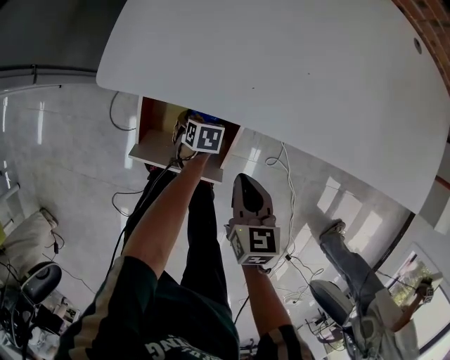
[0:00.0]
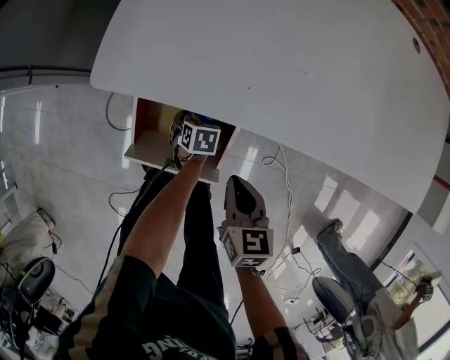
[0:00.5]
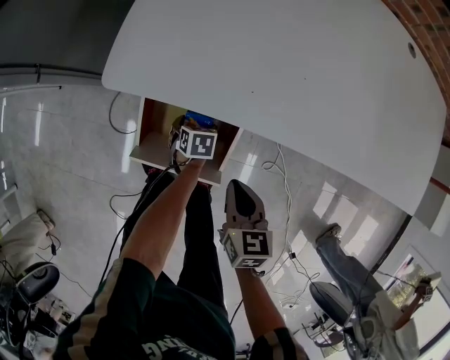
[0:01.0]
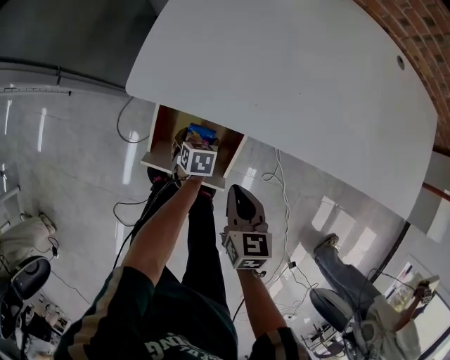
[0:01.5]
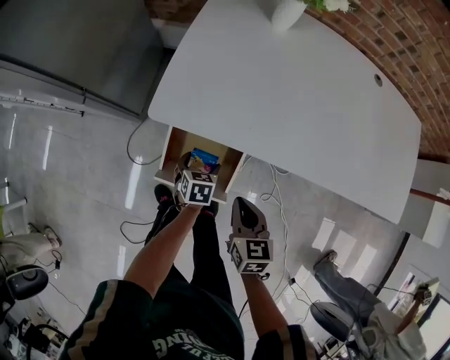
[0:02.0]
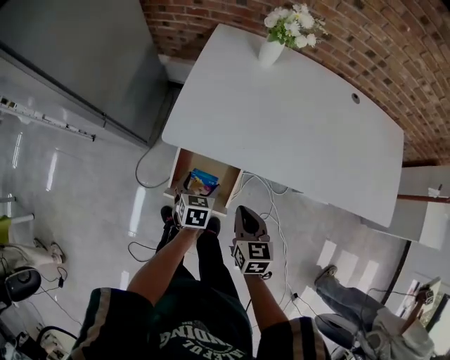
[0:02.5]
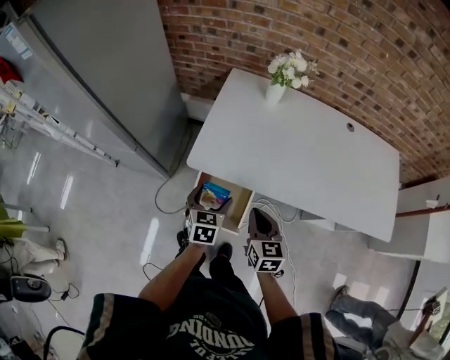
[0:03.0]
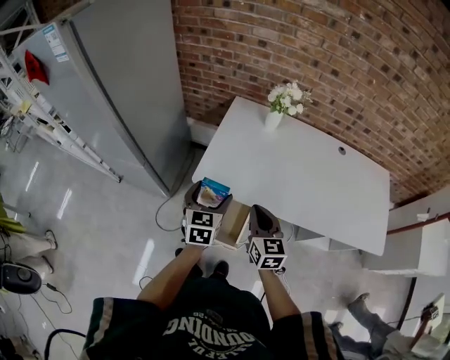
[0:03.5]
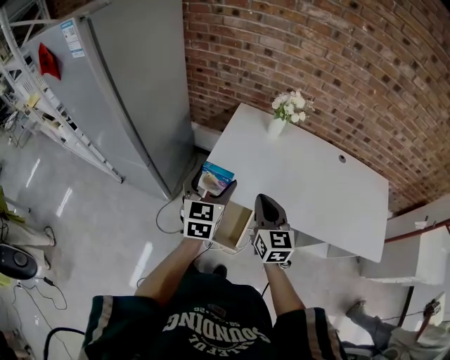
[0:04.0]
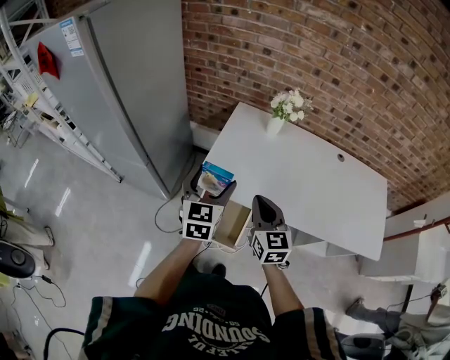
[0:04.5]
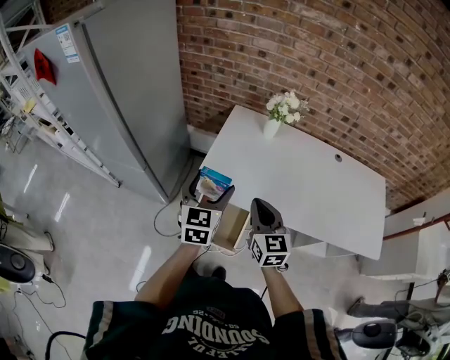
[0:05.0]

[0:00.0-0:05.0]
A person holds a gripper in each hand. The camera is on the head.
0:00.0 to 0:02.5: The right gripper heads upward, covering roughly 15 cm. Meanwhile the left gripper goes some 25 cm upward, and changes its angle by about 20 degrees.
0:02.5 to 0:05.0: The left gripper goes approximately 35 cm upward, and tilts its fingers approximately 40 degrees upward, while the right gripper heads upward, covering roughly 20 cm, and changes its angle by about 30 degrees.

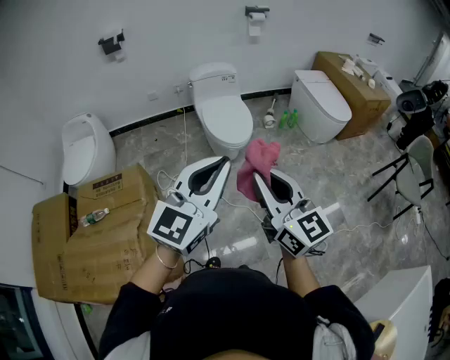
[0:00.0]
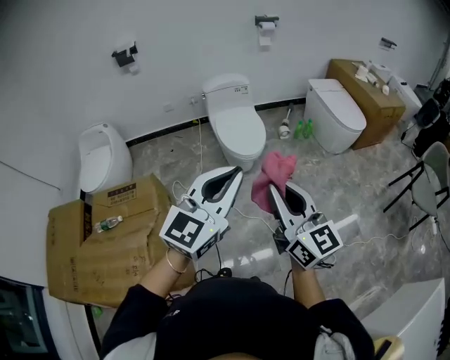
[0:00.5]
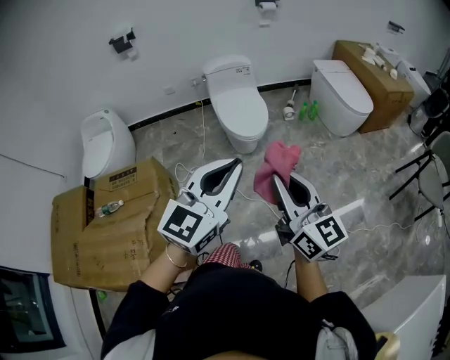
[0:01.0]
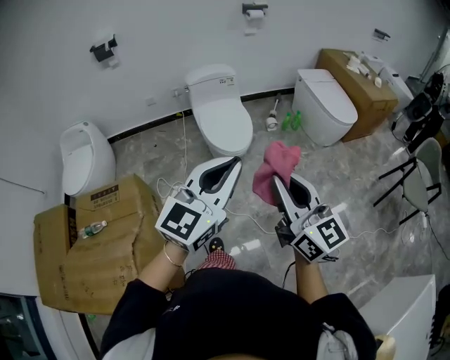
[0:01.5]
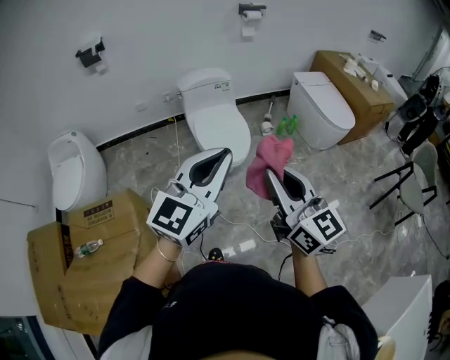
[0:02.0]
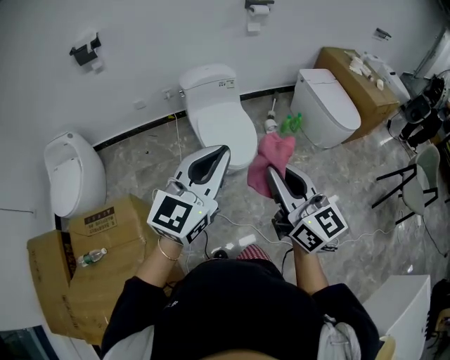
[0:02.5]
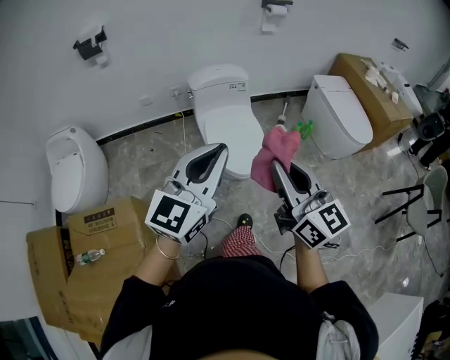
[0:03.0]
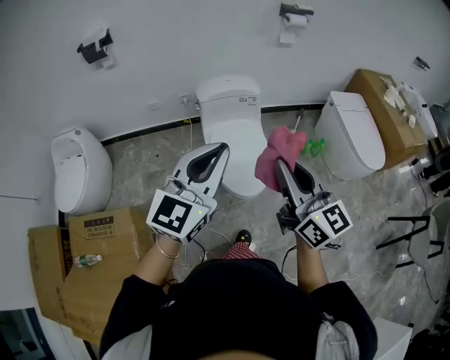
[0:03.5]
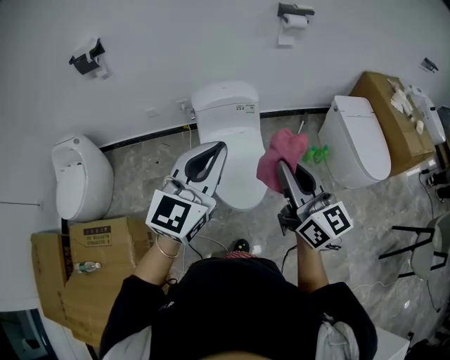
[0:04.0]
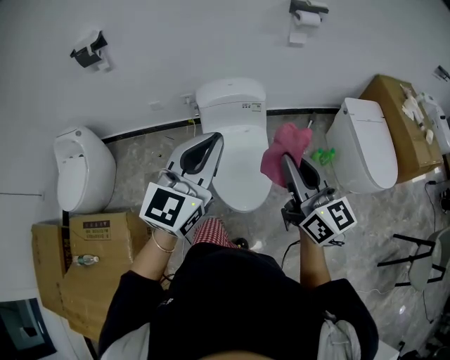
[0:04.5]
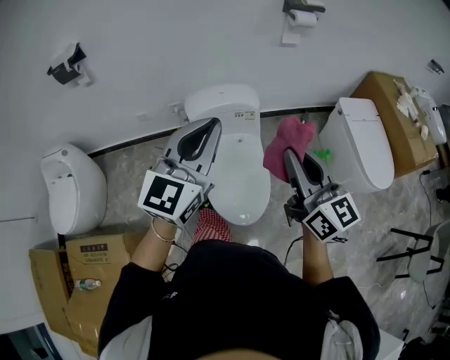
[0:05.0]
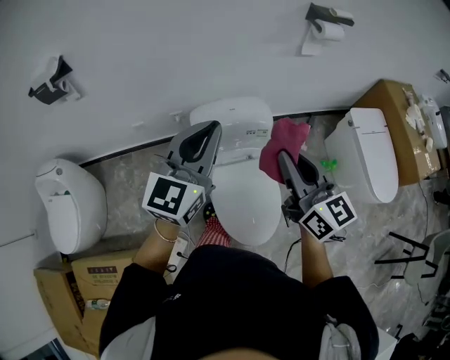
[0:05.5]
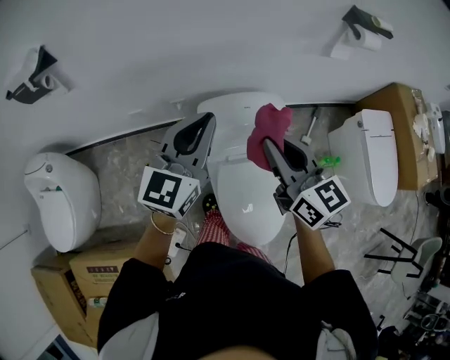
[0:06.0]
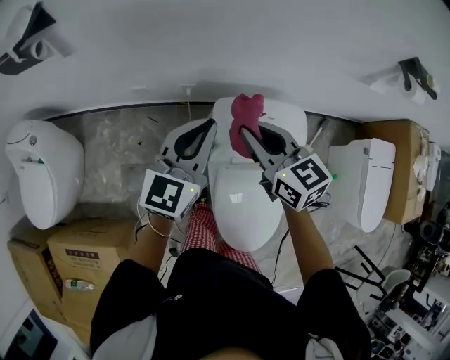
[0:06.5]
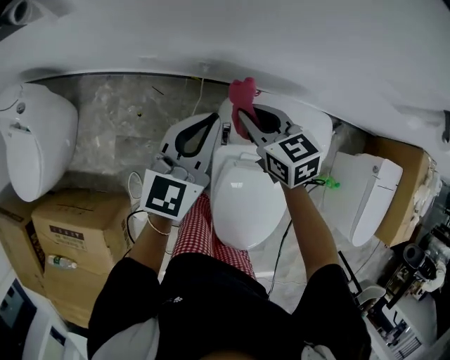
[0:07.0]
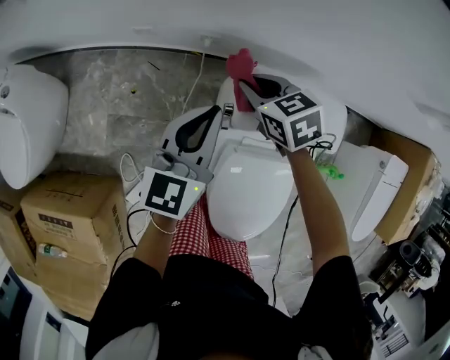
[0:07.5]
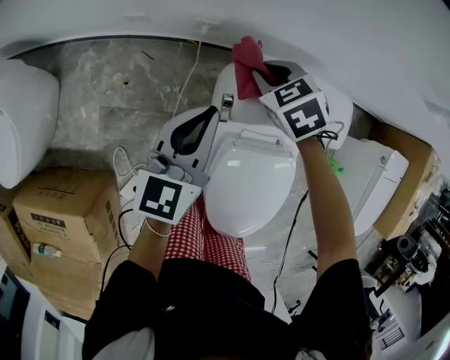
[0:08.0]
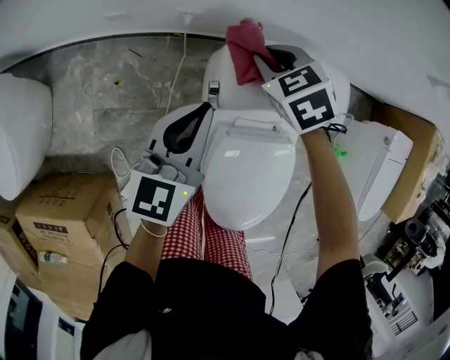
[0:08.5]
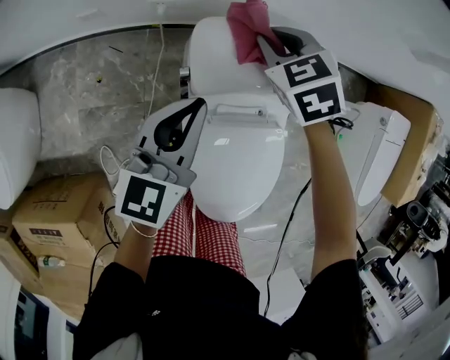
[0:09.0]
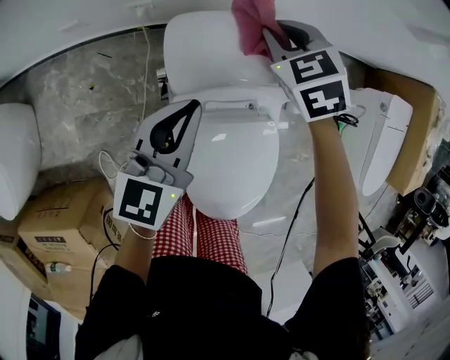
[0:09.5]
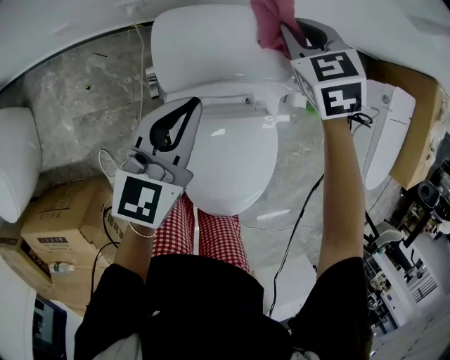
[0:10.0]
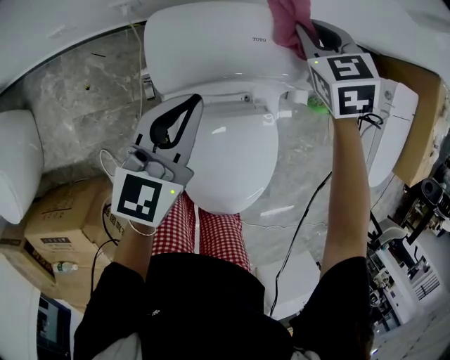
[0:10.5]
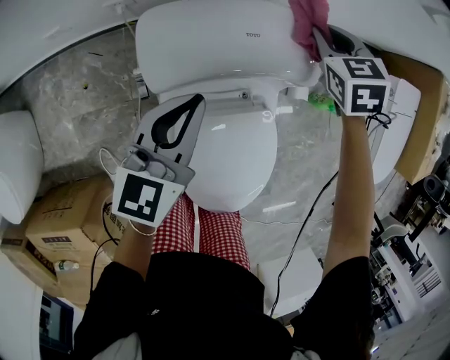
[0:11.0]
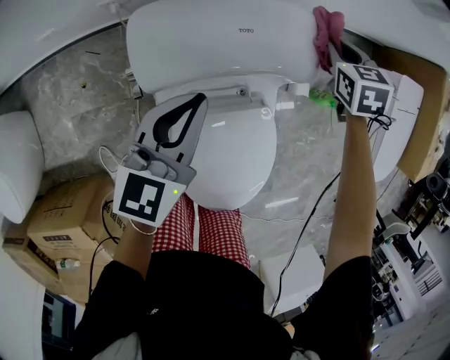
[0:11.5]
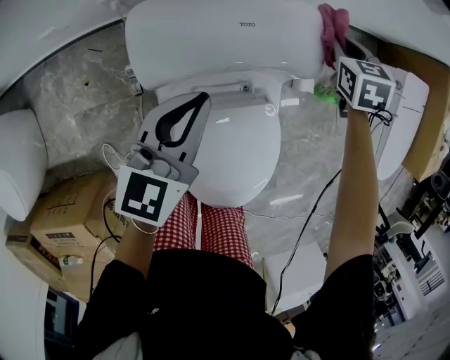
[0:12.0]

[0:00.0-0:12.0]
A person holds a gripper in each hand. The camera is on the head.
0:00.0 to 0:02.0: The grippers both shift forward by approximately 20 cm.
0:02.0 to 0:04.0: The grippers both shift forward by approximately 35 cm.
0:04.0 to 0:06.0: The two grippers travel together, forward and to the left, about 50 cm.
0:06.0 to 0:08.0: The right gripper shifts about 40 cm downward and forward, and tilts its fingers approximately 50 degrees downward. Meanwhile the left gripper shifts roughly 30 cm downward, and rotates approximately 30 degrees.
0:08.0 to 0:10.0: The right gripper heads to the right, covering some 20 cm, and swivels roughly 20 degrees. Meanwhile the left gripper heads to the right, covering some 15 cm.
0:10.0 to 0:12.0: The left gripper moves some 5 cm, while the right gripper is displaced to the right by roughly 20 cm, and turns by about 30 degrees.

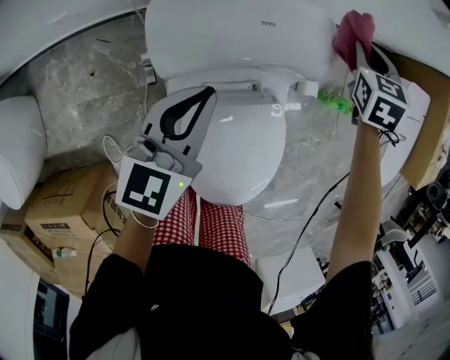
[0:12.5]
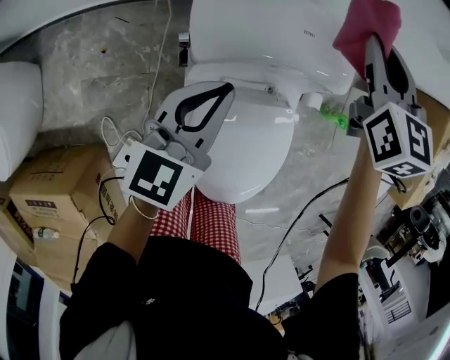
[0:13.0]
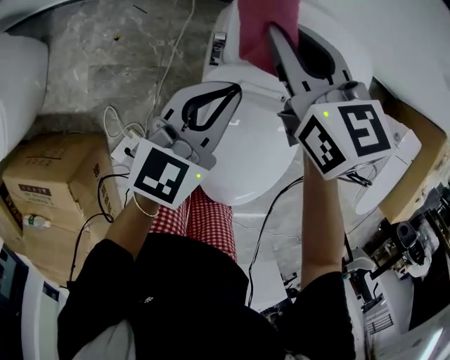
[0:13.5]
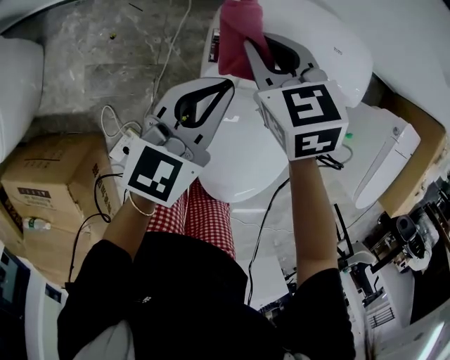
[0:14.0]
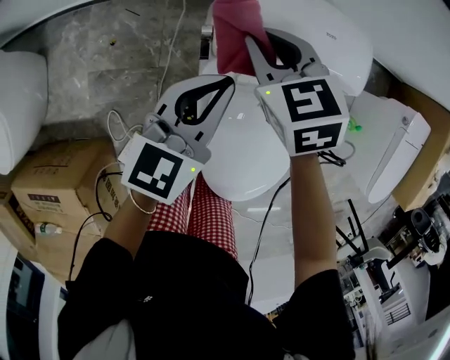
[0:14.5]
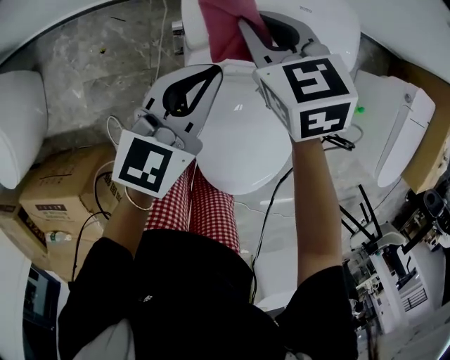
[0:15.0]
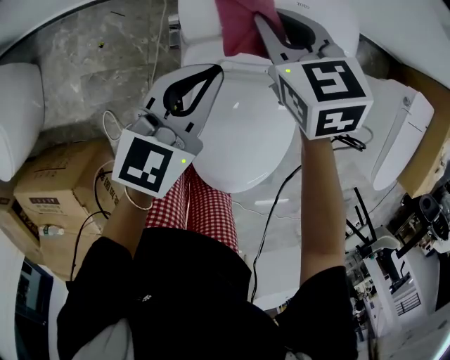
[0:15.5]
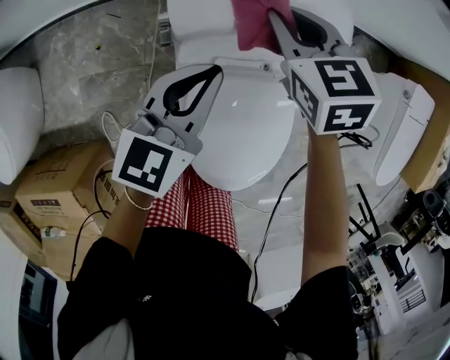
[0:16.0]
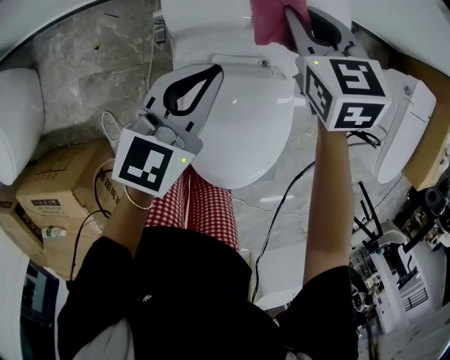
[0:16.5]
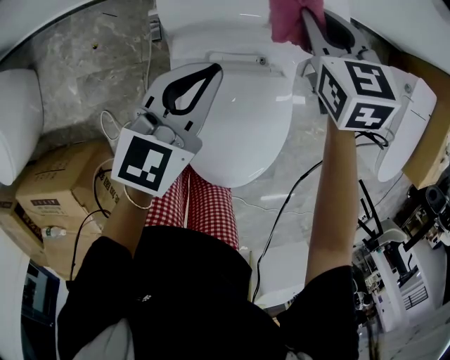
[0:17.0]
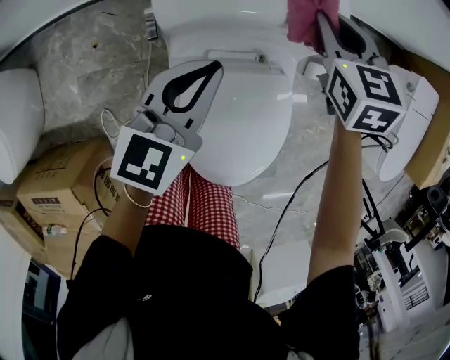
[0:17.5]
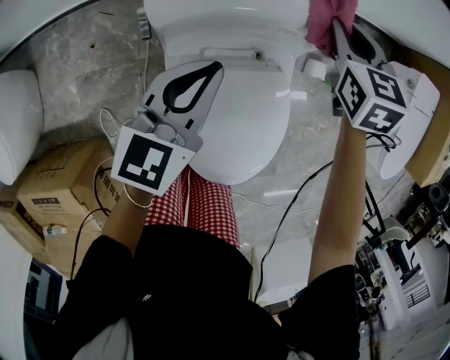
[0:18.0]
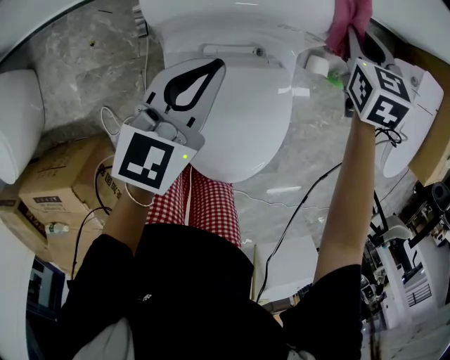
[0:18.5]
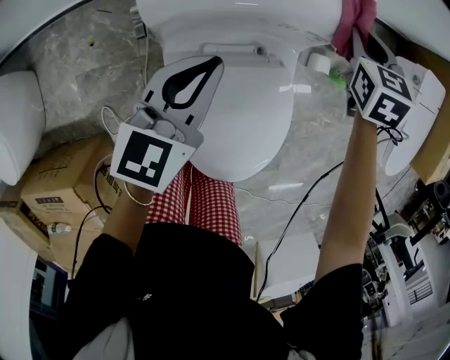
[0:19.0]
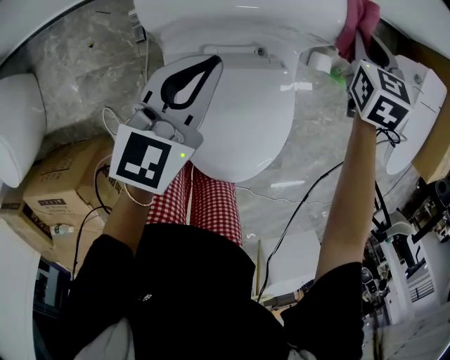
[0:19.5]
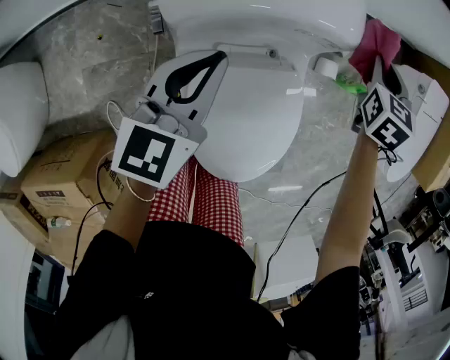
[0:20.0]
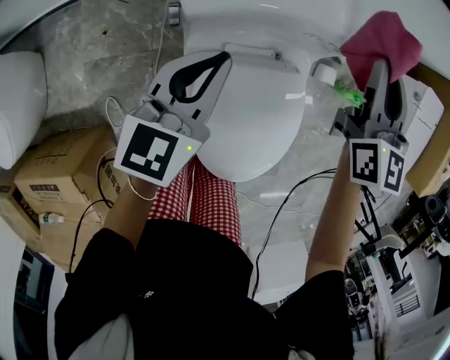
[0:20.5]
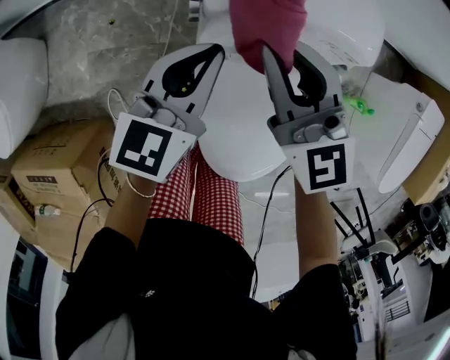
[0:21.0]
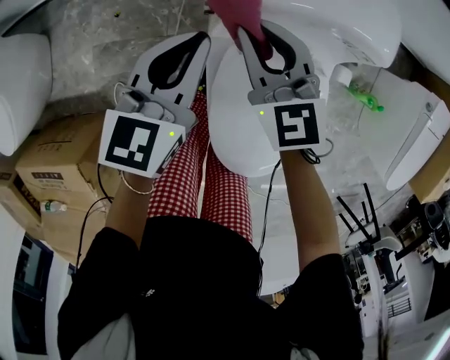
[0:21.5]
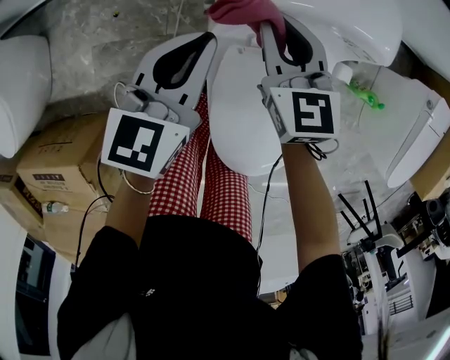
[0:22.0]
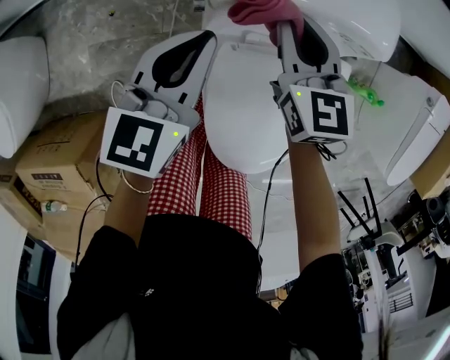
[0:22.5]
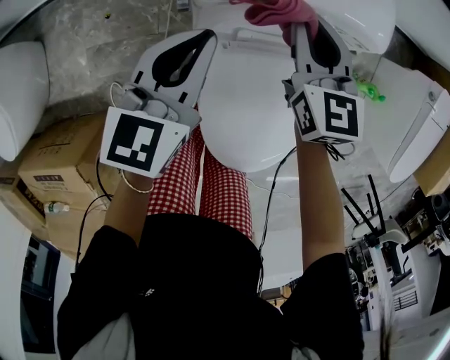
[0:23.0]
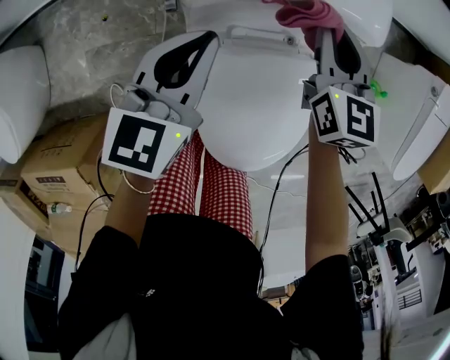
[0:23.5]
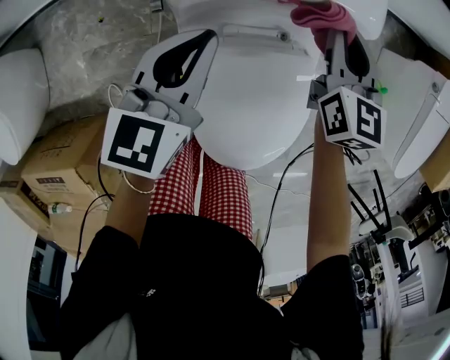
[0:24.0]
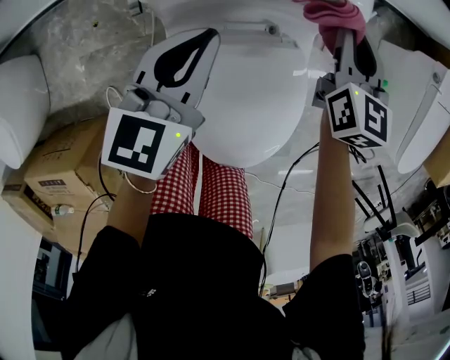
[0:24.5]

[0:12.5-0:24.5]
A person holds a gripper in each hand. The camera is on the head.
0:12.5 to 0:14.5: The right gripper goes upward and returns, roughly 10 cm each way, and changes its angle by roughly 40 degrees, while the left gripper ends up roughly 5 cm from where it was.
0:14.5 to 0:16.5: The left gripper is displaced to the right by about 5 cm. Meanwhile the right gripper is displaced to the right by approximately 15 cm.
0:16.5 to 0:18.5: The right gripper travels to the right by some 15 cm.
0:18.5 to 0:20.5: The right gripper is displaced upward and backward by approximately 15 cm, and angles its fingers upward, by some 30 degrees.
0:20.5 to 0:22.5: The right gripper heads to the left and downward, covering about 20 cm, and turns by approximately 20 degrees. Meanwhile the left gripper goes approximately 5 cm to the left.
0:22.5 to 0:24.5: The left gripper travels to the right by about 10 cm. Meanwhile the right gripper heads to the right, covering approximately 20 cm.
